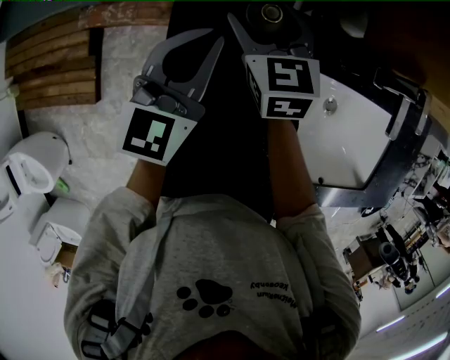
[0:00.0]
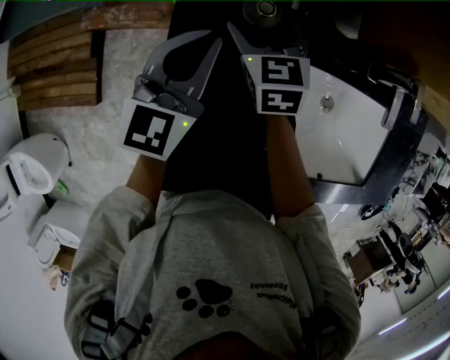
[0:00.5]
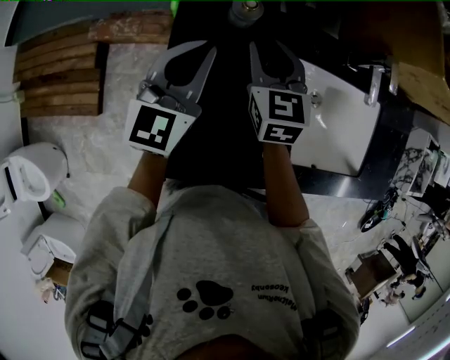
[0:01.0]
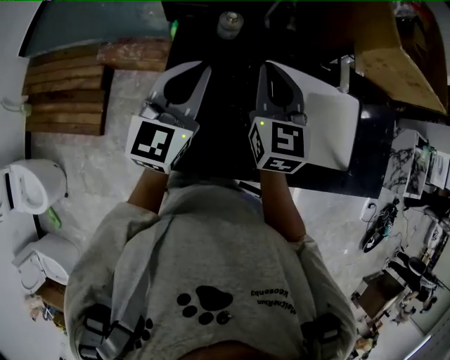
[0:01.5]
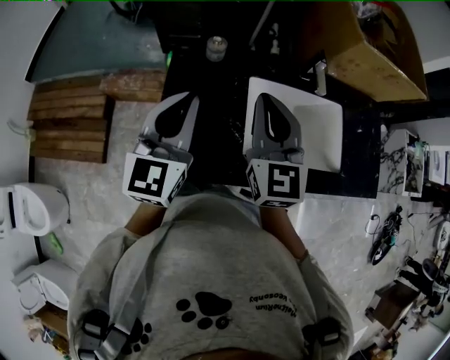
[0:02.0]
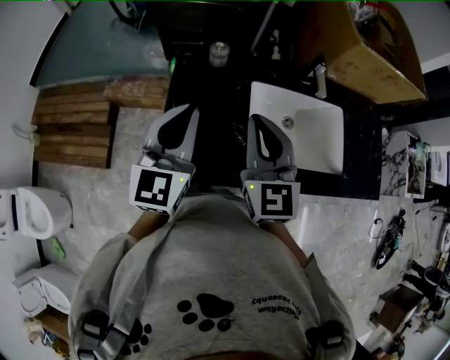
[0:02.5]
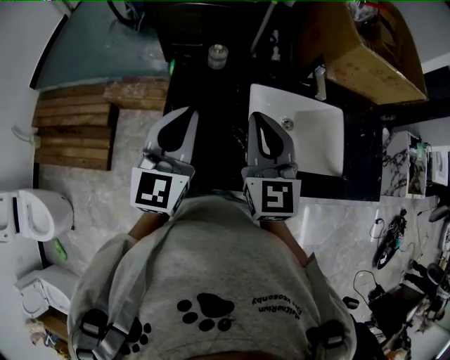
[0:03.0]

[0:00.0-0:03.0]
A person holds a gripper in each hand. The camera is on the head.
0:00.0 to 0:01.5: The left gripper is displaced backward and upward by approximately 20 cm. Meanwhile the right gripper moves backward, upward and to the right, roughly 25 cm, and closes its fingers.
0:01.5 to 0:03.0: The two grippers go approximately 10 cm backward and upward.

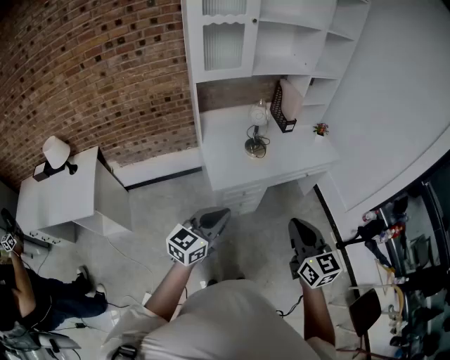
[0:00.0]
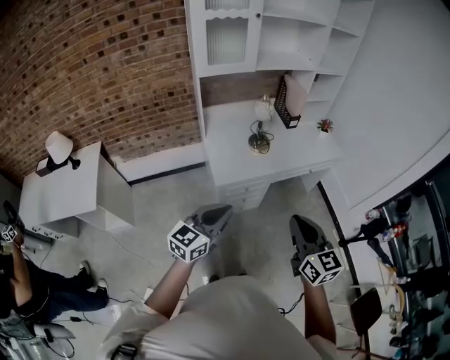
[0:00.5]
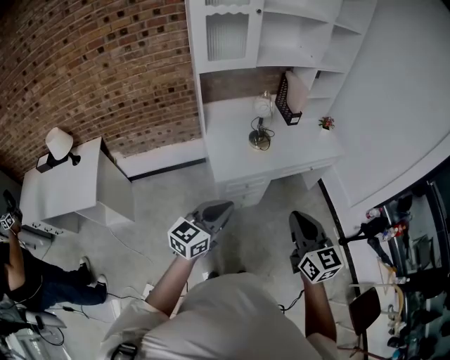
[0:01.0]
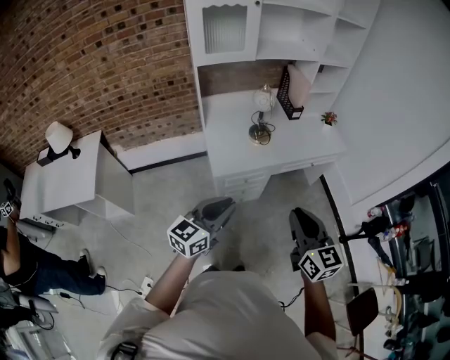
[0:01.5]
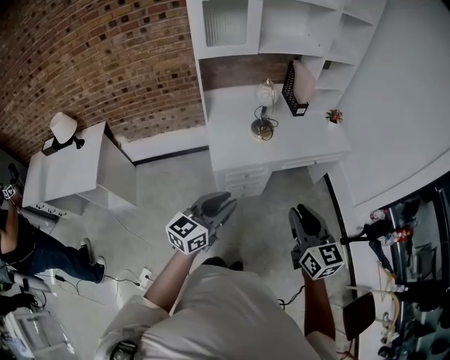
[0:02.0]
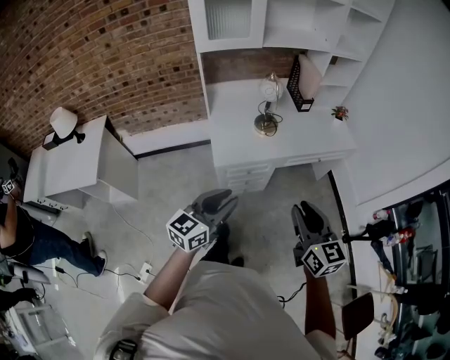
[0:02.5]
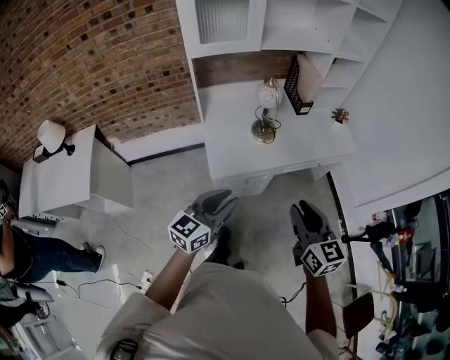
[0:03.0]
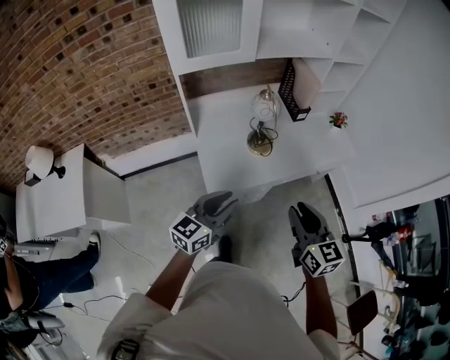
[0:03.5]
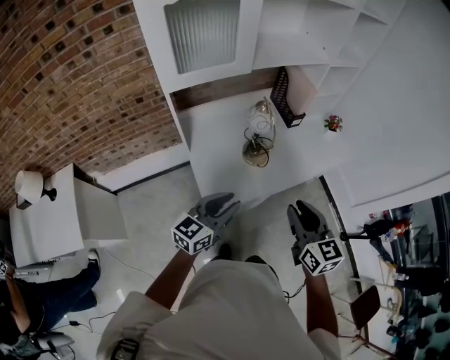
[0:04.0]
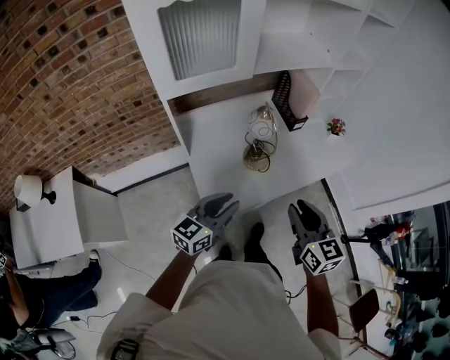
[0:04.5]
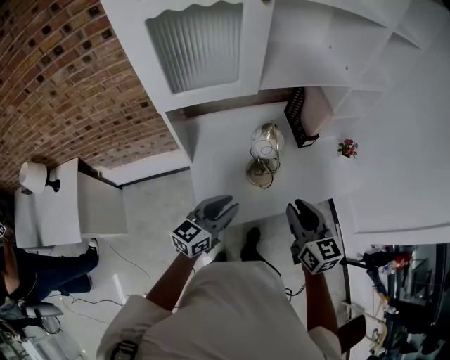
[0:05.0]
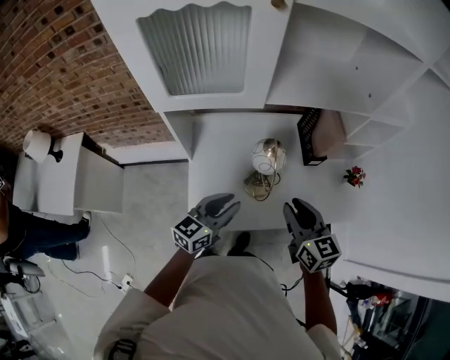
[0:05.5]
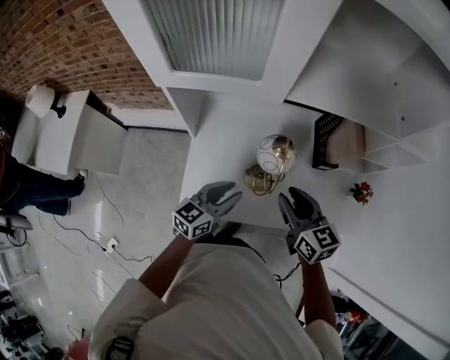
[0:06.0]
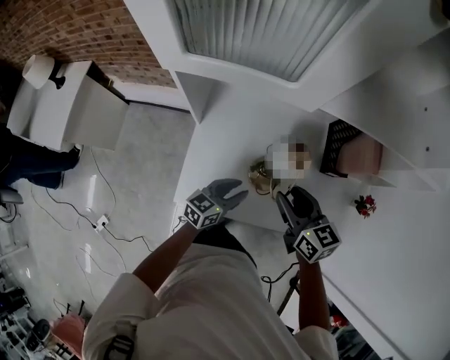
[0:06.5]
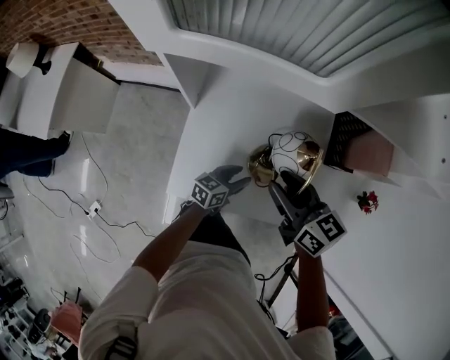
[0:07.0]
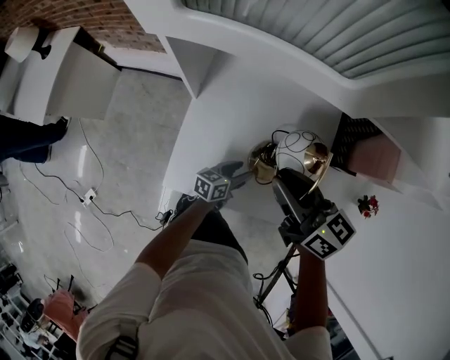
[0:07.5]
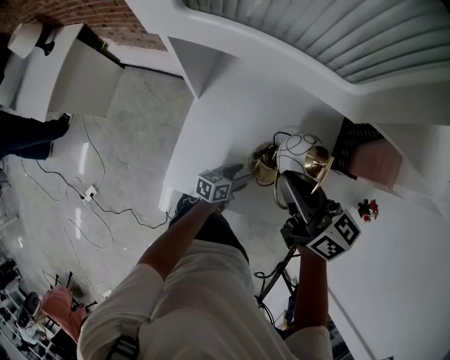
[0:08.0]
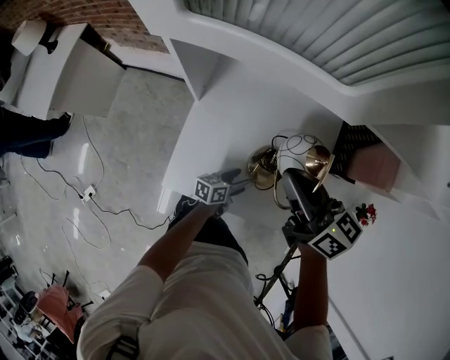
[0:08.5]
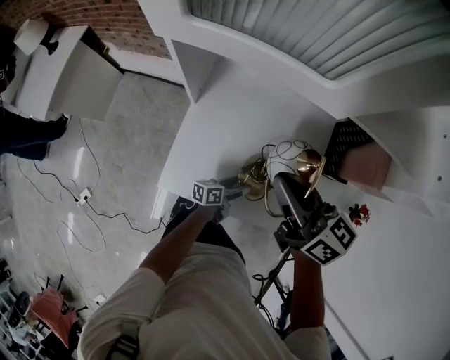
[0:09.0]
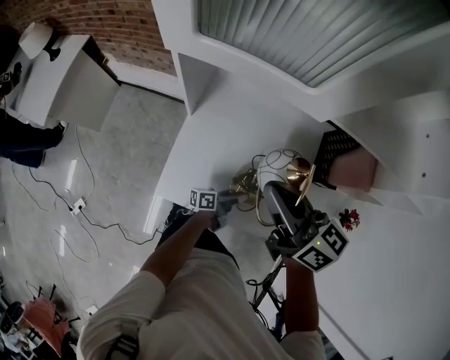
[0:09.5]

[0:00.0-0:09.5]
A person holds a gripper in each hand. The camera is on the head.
0:00.0 to 0:02.0: Both grippers travel together to the right, roughly 5 cm. The right gripper opens its fingers.
0:02.0 to 0:04.0: Both grippers move forward, approximately 30 cm.
0:04.0 to 0:05.5: The two grippers go some 20 cm forward. The right gripper swivels some 20 degrees.
0:05.5 to 0:07.5: The right gripper shifts some 20 cm forward, to the left and downward, and rotates roughly 40 degrees. The left gripper heads downward, covering about 35 cm, and turns by about 40 degrees.
0:07.5 to 0:09.5: The left gripper shifts by roughly 5 cm, and rotates about 40 degrees. The right gripper is displaced upward by some 10 cm.

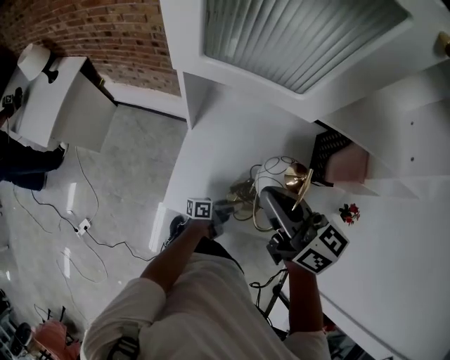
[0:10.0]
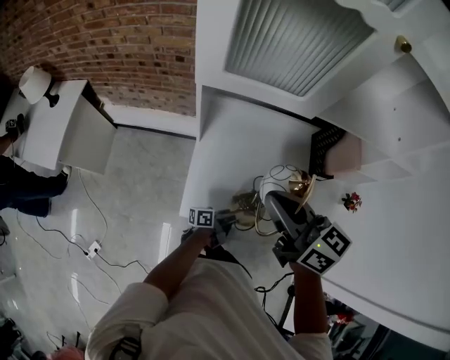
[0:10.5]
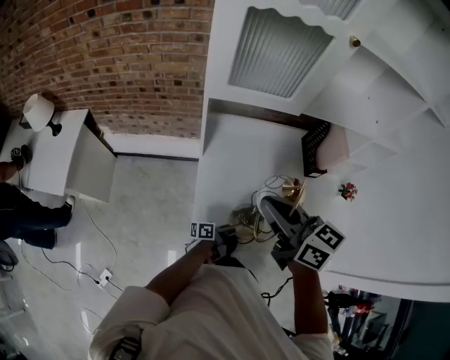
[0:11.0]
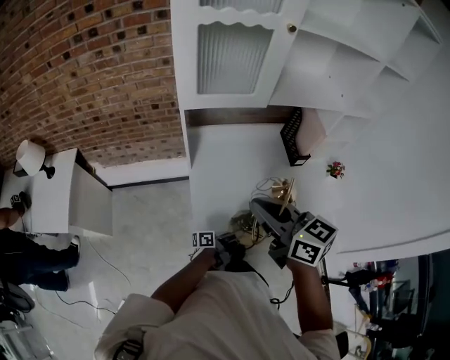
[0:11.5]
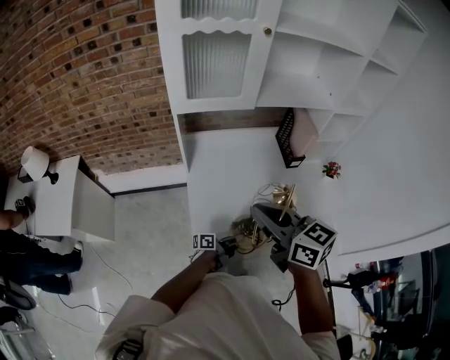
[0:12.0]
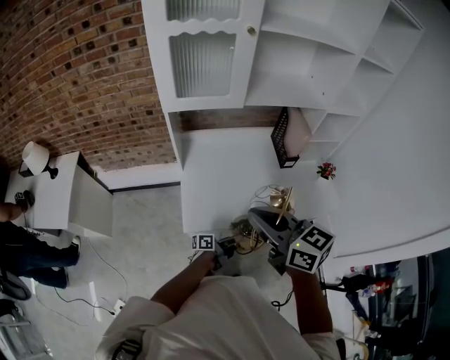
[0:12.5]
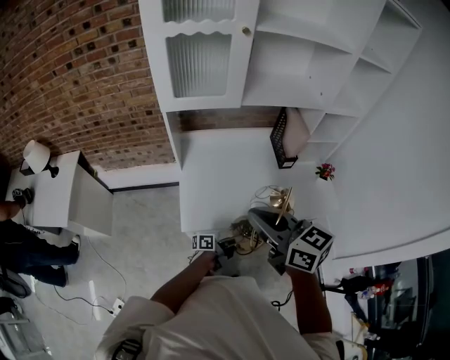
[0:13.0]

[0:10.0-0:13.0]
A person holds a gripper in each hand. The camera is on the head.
0:10.0 to 0:11.5: The right gripper is displaced backward and upward by some 20 cm, and changes its angle by approximately 20 degrees. Meanwhile the left gripper is displaced backward, upward and to the left by approximately 20 cm.
0:11.5 to 0:13.0: The left gripper moves to the right, about 10 cm. Meanwhile the right gripper travels to the right and backward by approximately 10 cm.

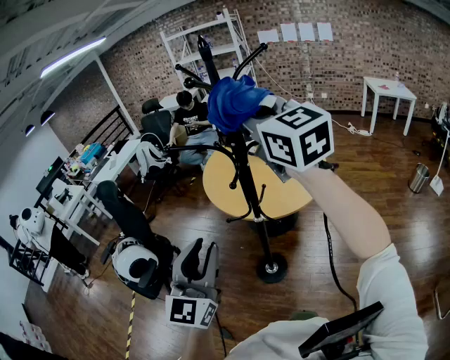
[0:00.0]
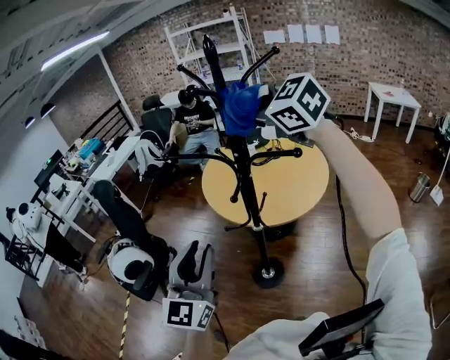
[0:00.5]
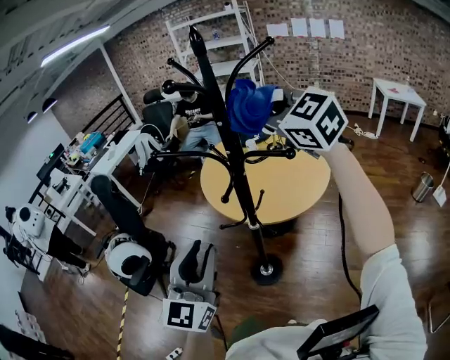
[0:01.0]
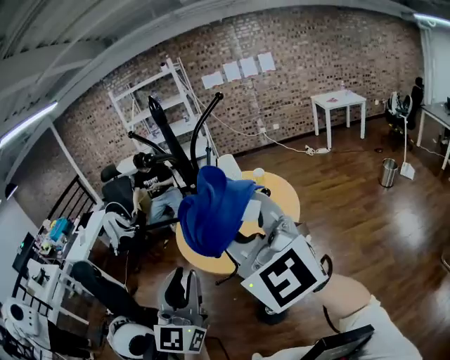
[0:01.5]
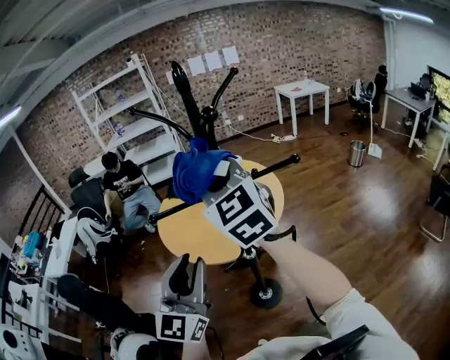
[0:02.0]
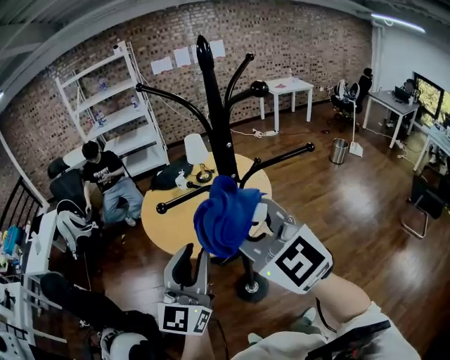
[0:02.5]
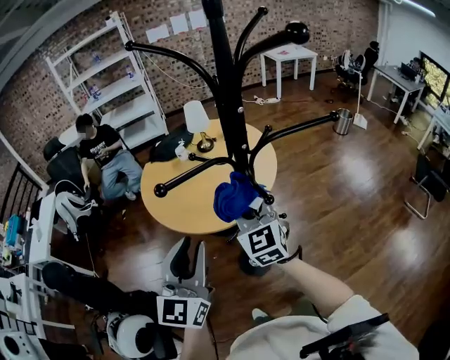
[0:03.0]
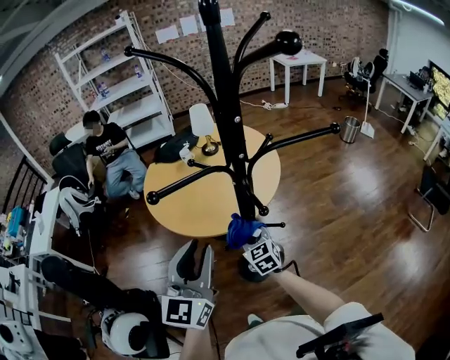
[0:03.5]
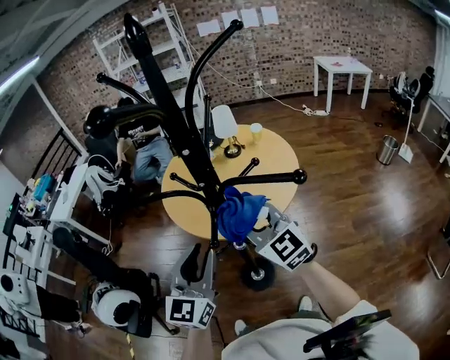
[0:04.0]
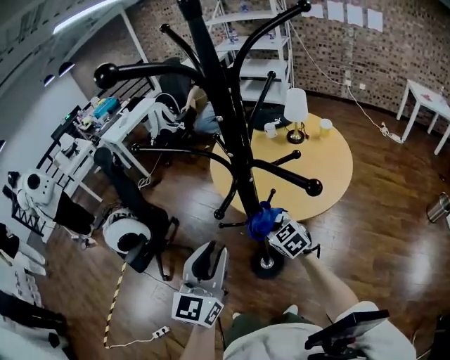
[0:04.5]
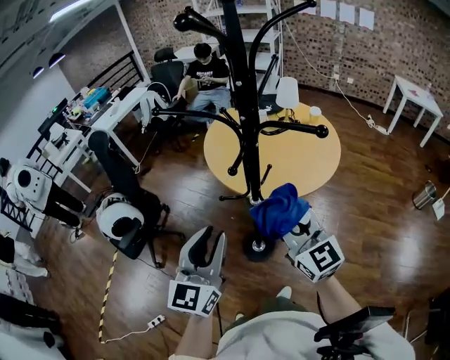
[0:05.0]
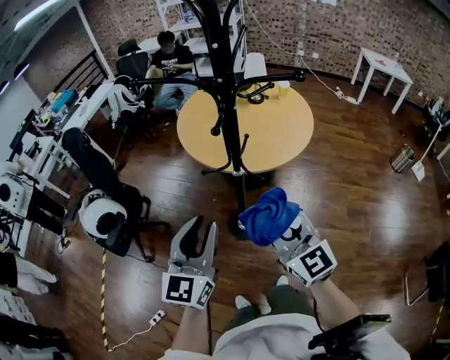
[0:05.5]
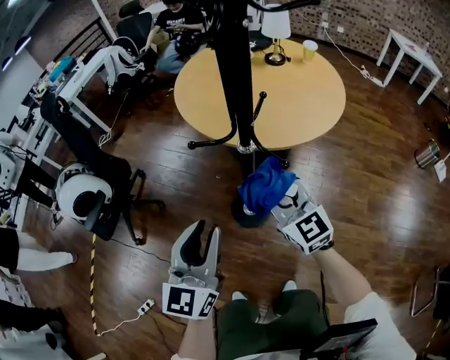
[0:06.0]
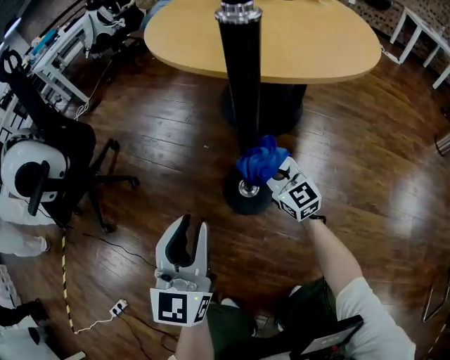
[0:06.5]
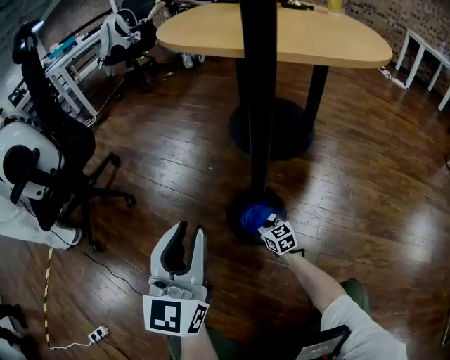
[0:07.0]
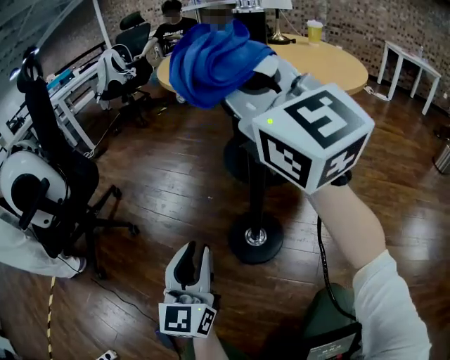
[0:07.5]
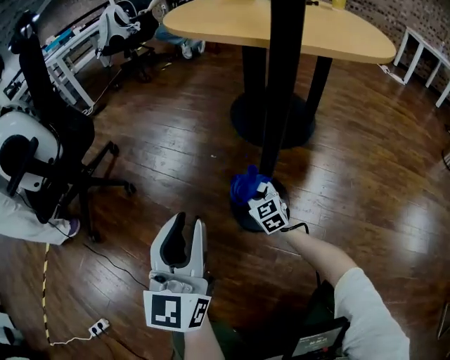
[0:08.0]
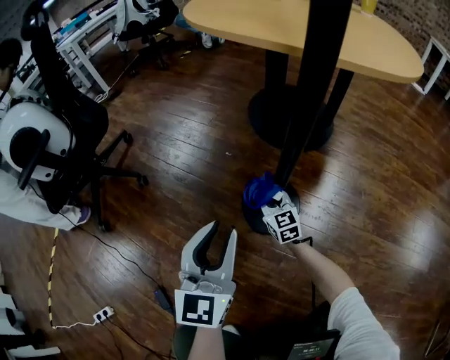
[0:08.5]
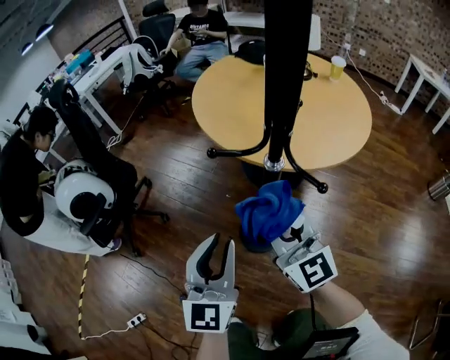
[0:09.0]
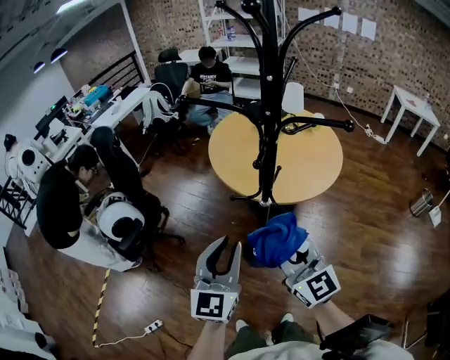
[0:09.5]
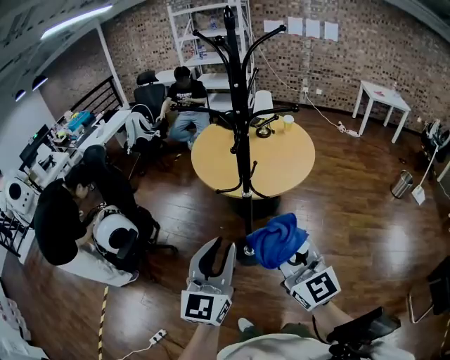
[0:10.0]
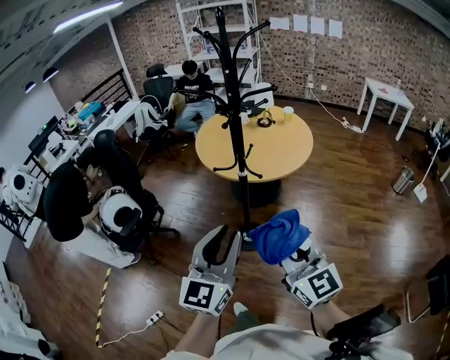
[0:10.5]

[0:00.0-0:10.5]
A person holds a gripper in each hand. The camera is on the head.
0:00.0 to 0:02.0: The right gripper changes place by approximately 15 cm, and changes its angle by roughly 40 degrees, while the left gripper moves approximately 20 cm, and rotates about 30 degrees.
0:02.0 to 0:04.0: The left gripper moves about 15 cm; the right gripper moves downward, about 20 cm, and rotates about 30 degrees.
0:04.0 to 0:06.5: The right gripper goes up and down, roughly 70 cm each way, reversing 2 times; the left gripper moves downward, about 60 cm, and rotates about 20 degrees.
0:06.5 to 0:08.5: The left gripper goes roughly 15 cm downward, while the right gripper moves up and down over approximately 70 cm, changing direction 2 times.
0:08.5 to 0:10.5: The left gripper travels upward by approximately 70 cm, while the right gripper moves upward and backward, approximately 1 m, and changes its angle by about 30 degrees.
